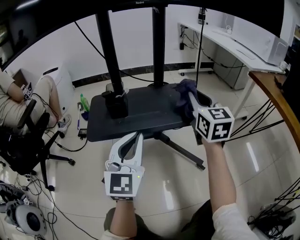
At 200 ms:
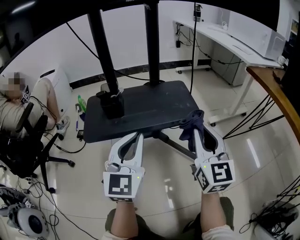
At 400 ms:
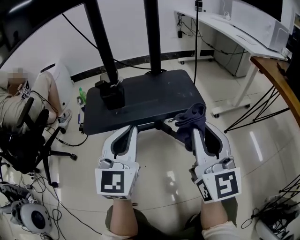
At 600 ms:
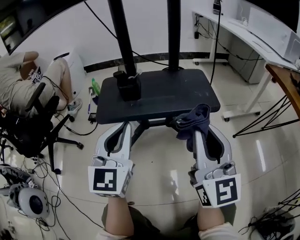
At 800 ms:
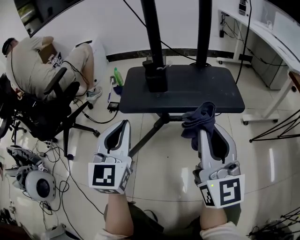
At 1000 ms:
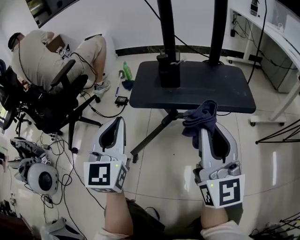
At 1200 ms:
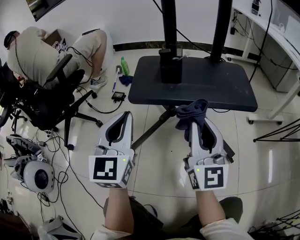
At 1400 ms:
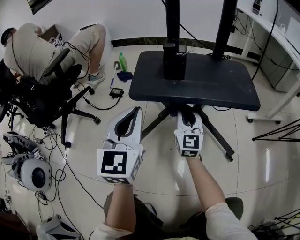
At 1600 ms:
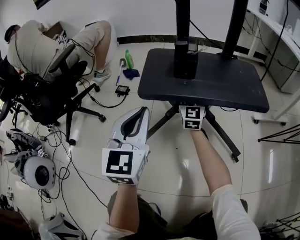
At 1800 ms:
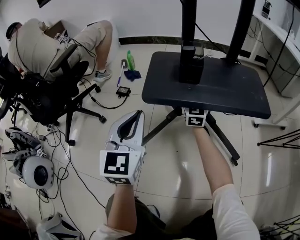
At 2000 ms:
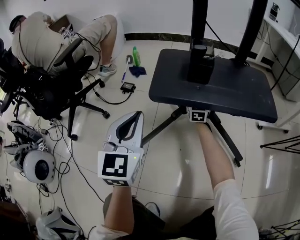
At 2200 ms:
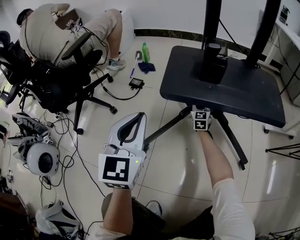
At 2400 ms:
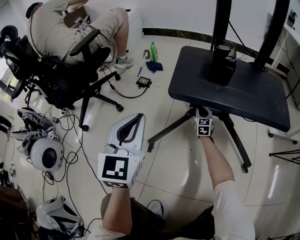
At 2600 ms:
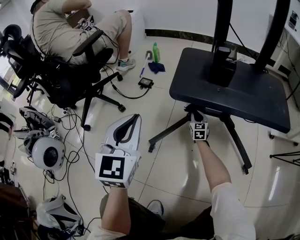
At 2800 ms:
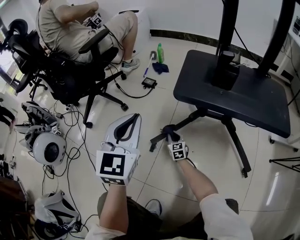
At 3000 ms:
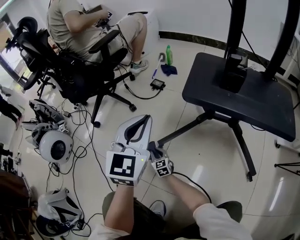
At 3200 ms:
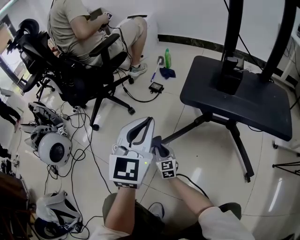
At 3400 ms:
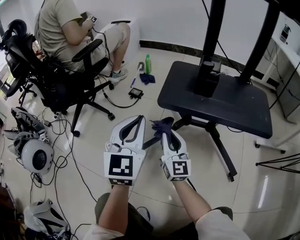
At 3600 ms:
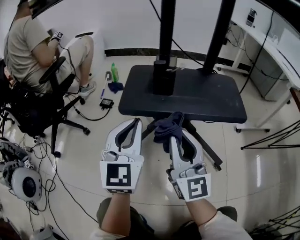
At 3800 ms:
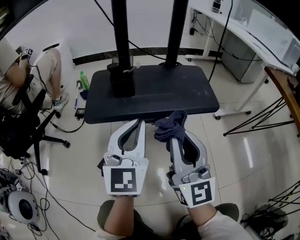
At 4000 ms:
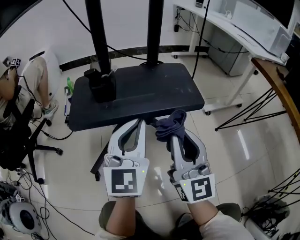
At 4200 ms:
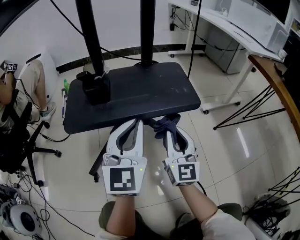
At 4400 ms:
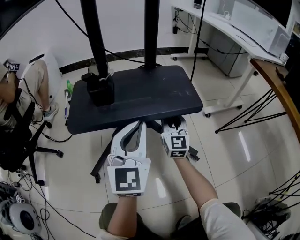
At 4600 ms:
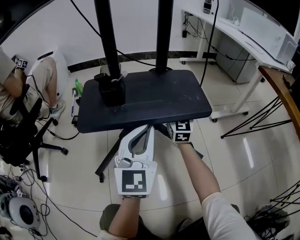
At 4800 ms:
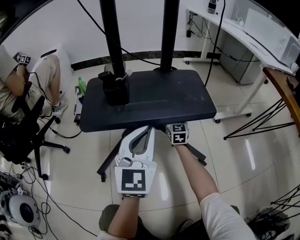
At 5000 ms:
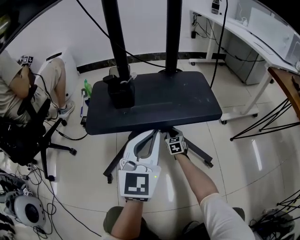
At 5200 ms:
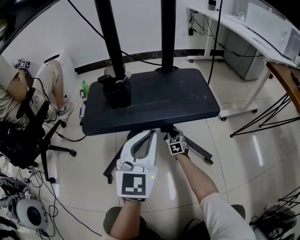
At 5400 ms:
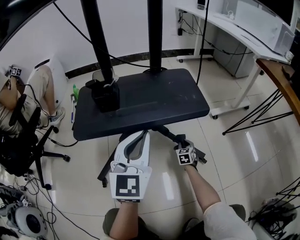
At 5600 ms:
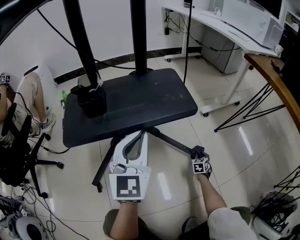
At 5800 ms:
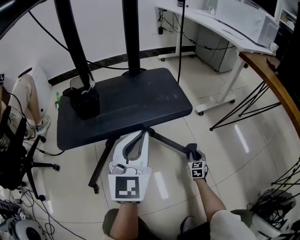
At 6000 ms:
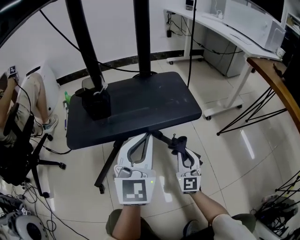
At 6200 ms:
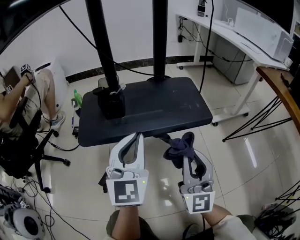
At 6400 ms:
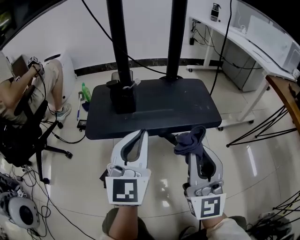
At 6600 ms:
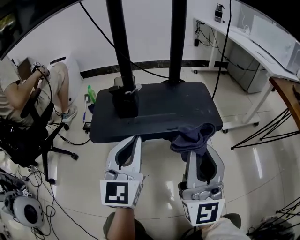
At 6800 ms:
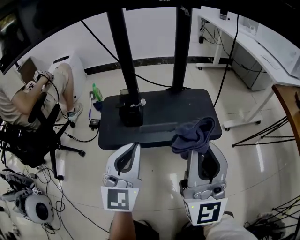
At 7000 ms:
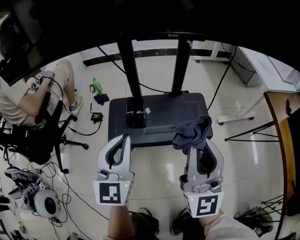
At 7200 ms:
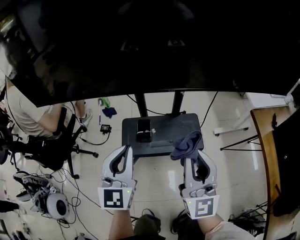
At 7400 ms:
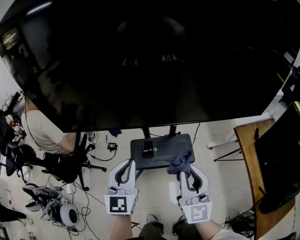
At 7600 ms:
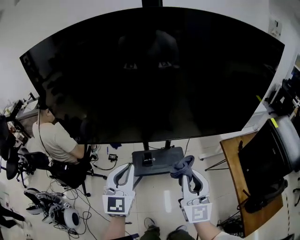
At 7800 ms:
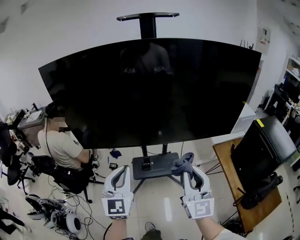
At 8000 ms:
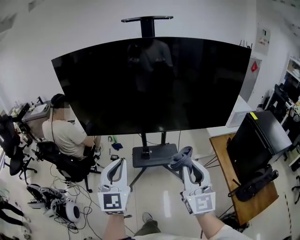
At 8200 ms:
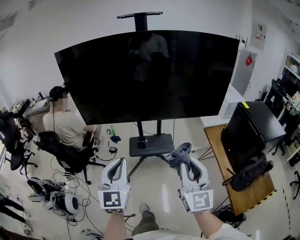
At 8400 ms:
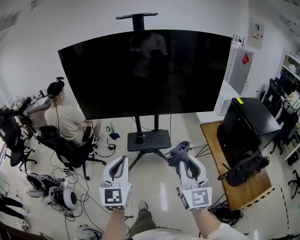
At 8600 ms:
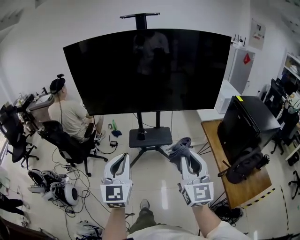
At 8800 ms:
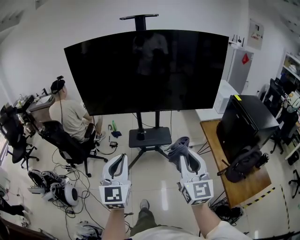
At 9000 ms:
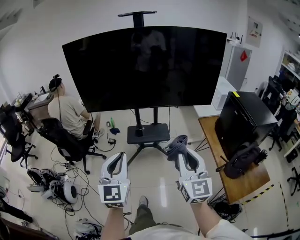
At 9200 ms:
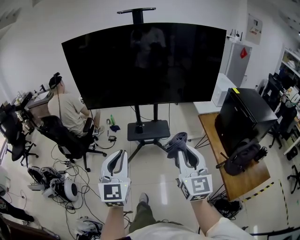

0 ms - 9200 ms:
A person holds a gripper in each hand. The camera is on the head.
0 ms - 1600 ms: The left gripper moves to the left, roughly 15 cm, while the right gripper heads to the left, downward and forward, covering roughly 35 cm.
1600 ms - 3000 ms: The right gripper goes roughly 50 cm downward and to the left, and rotates about 50 degrees. The left gripper goes approximately 10 cm to the left.
3000 ms - 4600 ms: The left gripper moves roughly 25 cm, and swivels some 30 degrees. The right gripper changes place by roughly 70 cm, and turns by some 50 degrees.
4600 ms - 6200 ms: The right gripper travels backward by approximately 25 cm, moves some 50 cm downward and comes back, and rotates roughly 20 degrees.
6200 ms - 7600 ms: The grippers both shift upward by roughly 80 cm. The right gripper turns by approximately 20 degrees.
7600 ms - 9200 ms: The right gripper is displaced backward, upward and to the right by about 35 cm. Meanwhile the left gripper is displaced backward and upward by roughly 35 cm.

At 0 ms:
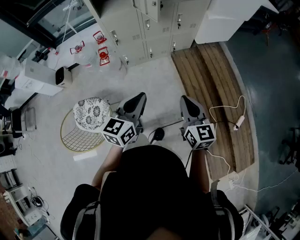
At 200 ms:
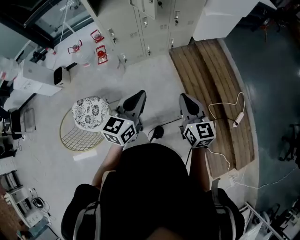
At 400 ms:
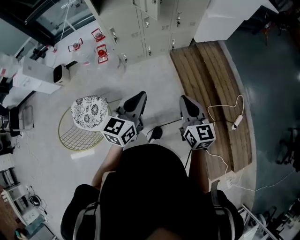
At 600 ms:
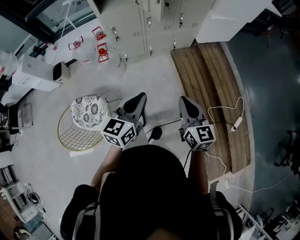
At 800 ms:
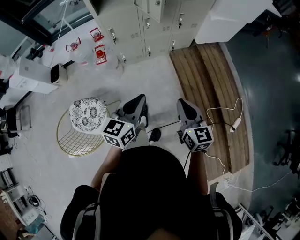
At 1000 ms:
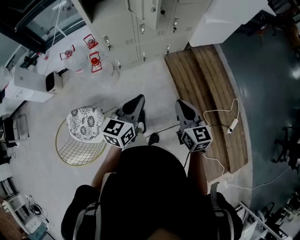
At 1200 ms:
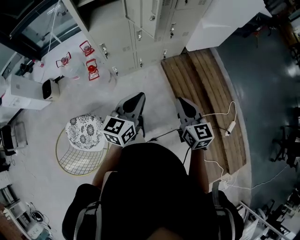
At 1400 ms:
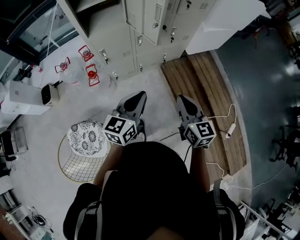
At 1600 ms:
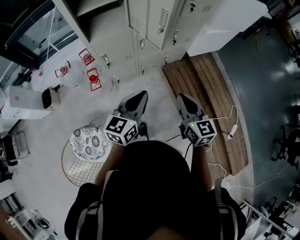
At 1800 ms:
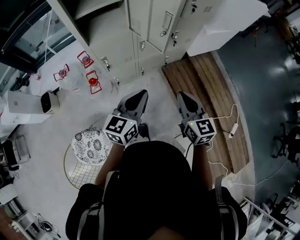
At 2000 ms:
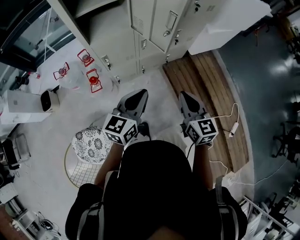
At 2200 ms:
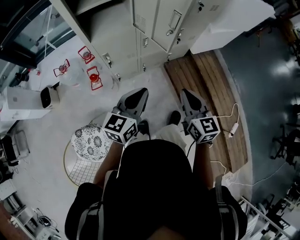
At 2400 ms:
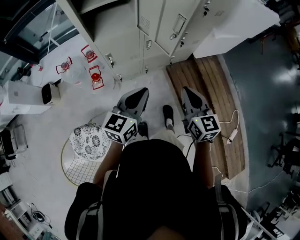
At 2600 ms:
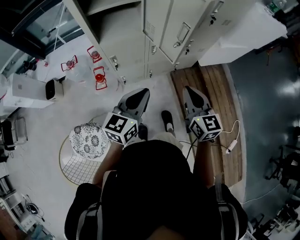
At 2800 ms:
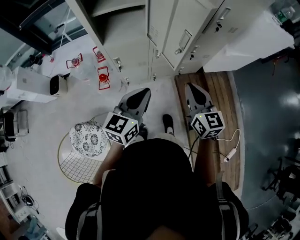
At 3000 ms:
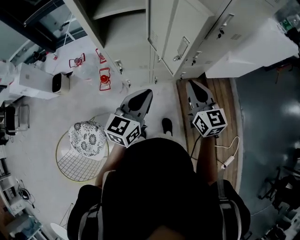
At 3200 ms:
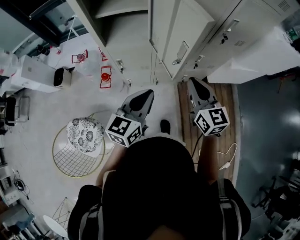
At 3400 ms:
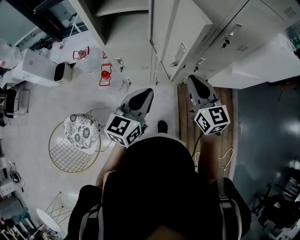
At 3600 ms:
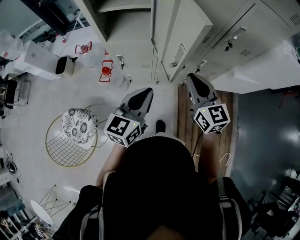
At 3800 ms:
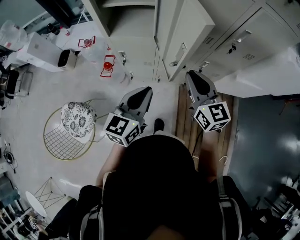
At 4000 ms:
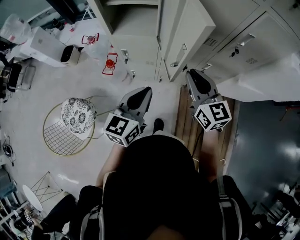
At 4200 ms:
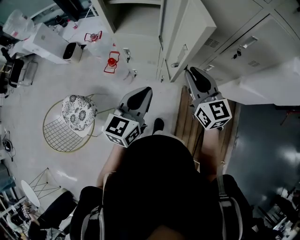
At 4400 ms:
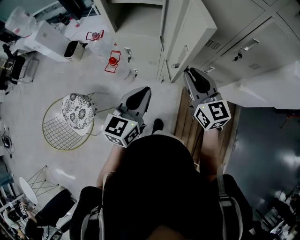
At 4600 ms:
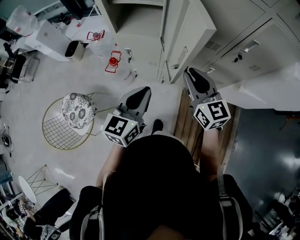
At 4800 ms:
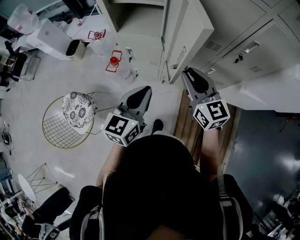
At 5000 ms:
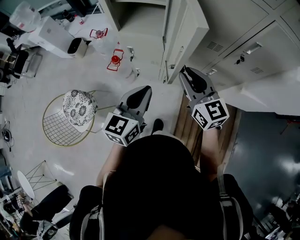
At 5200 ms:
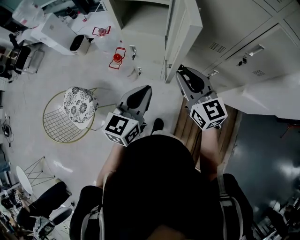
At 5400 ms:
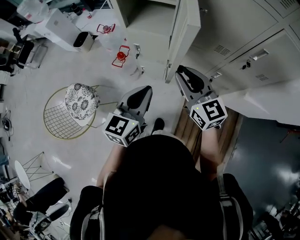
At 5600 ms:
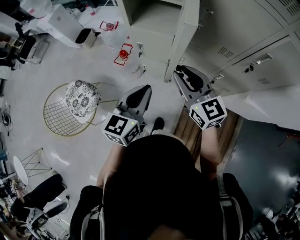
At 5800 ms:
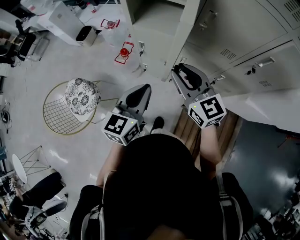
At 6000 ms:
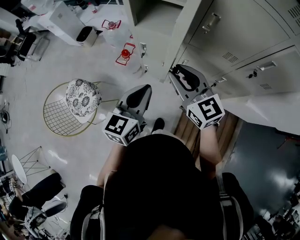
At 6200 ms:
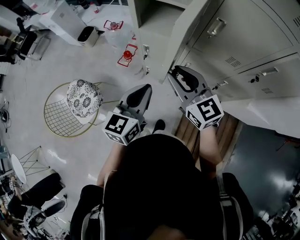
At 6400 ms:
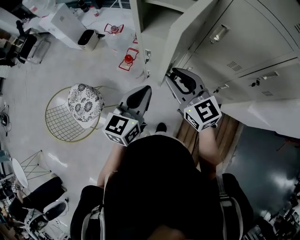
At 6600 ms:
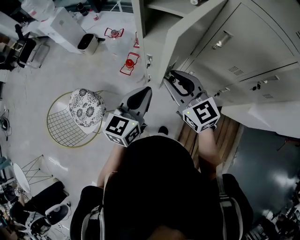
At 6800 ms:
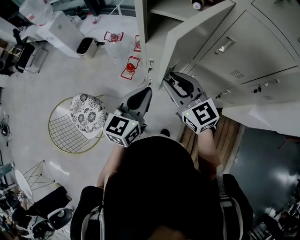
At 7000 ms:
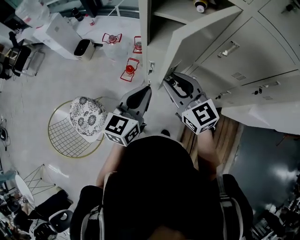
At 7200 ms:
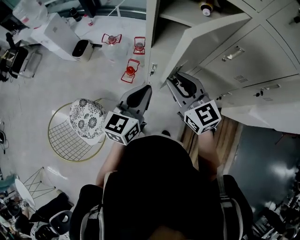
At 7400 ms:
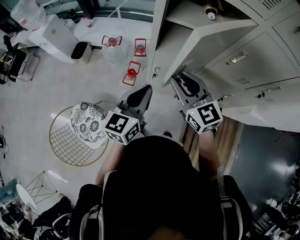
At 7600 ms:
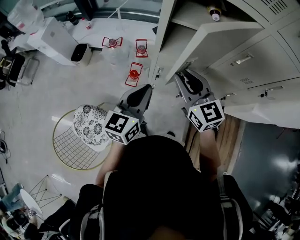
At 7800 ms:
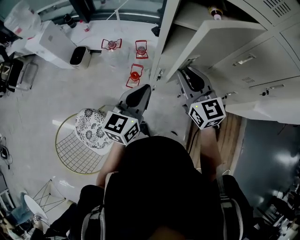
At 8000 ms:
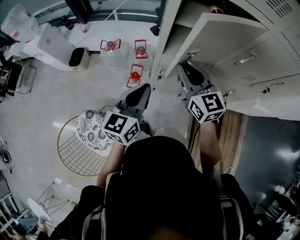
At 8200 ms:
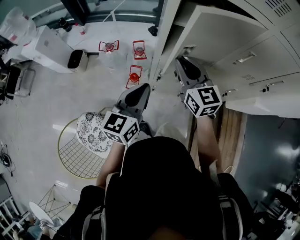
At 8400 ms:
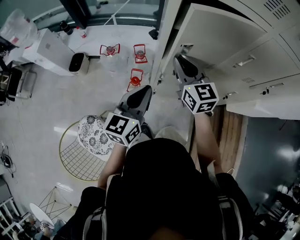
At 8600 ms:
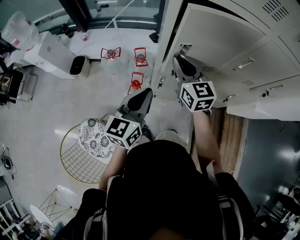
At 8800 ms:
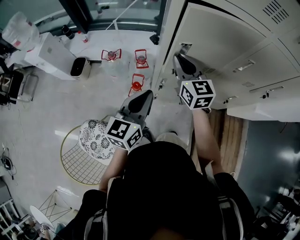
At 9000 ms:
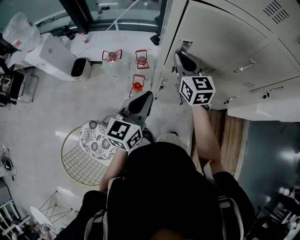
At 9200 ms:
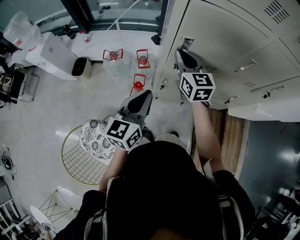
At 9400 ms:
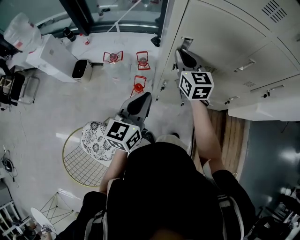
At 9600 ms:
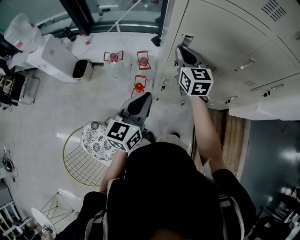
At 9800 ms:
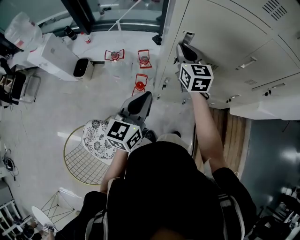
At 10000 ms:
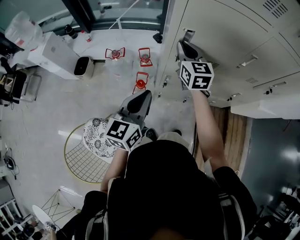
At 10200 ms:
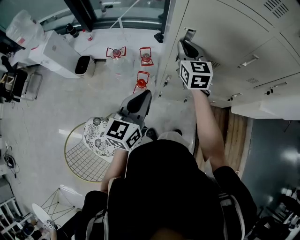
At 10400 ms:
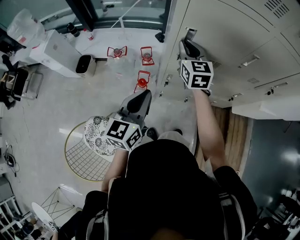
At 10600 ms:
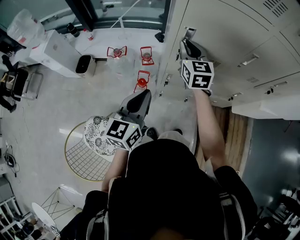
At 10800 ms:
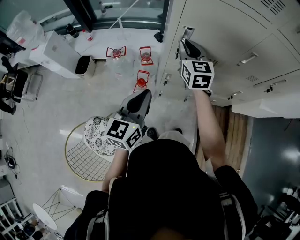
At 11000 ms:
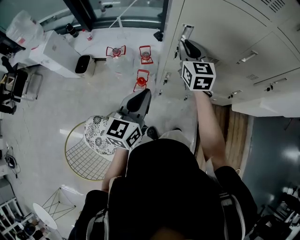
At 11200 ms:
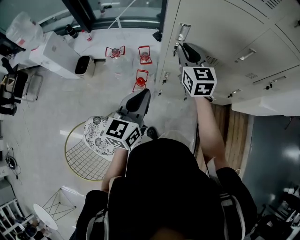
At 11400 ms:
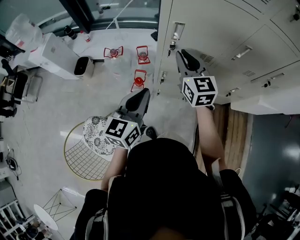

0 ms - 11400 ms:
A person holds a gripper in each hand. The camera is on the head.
0 ms - 1400 ms: Both grippers move forward, some 20 cm.
1400 ms - 2800 ms: The two grippers go roughly 15 cm forward.
2800 ms - 4200 ms: The right gripper moves roughly 10 cm, and rotates about 30 degrees, while the left gripper moves approximately 5 cm, and turns by roughly 20 degrees.
4200 ms - 5600 ms: The right gripper heads to the left, covering some 5 cm.
5600 ms - 7200 ms: The grippers both shift to the left and forward by some 20 cm.
7200 ms - 8600 ms: The right gripper shifts approximately 15 cm forward, and turns by roughly 20 degrees; the left gripper heads to the left and forward, covering some 10 cm.
8600 ms - 10000 ms: The right gripper shifts about 5 cm forward.
10000 ms - 11400 ms: The right gripper moves backward, about 10 cm.

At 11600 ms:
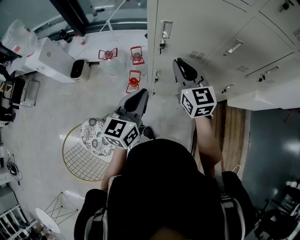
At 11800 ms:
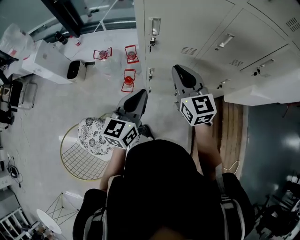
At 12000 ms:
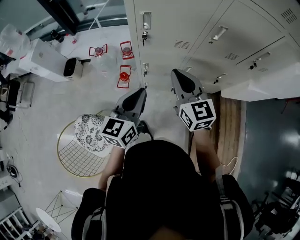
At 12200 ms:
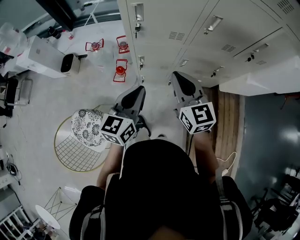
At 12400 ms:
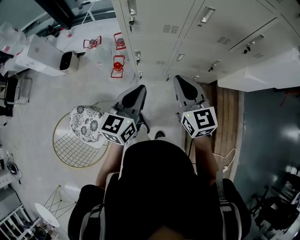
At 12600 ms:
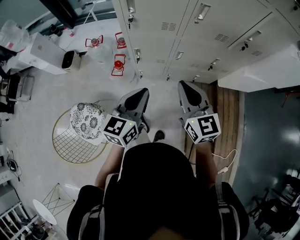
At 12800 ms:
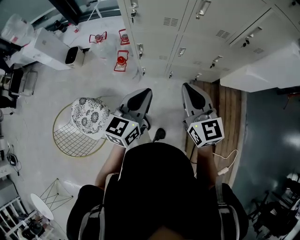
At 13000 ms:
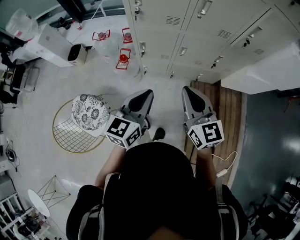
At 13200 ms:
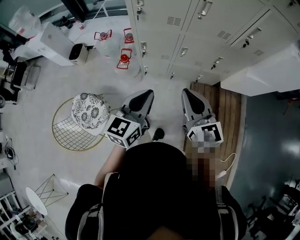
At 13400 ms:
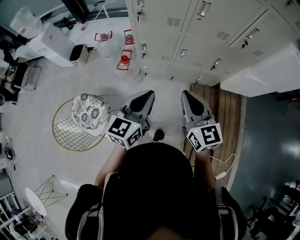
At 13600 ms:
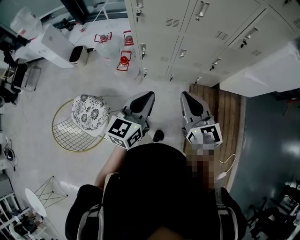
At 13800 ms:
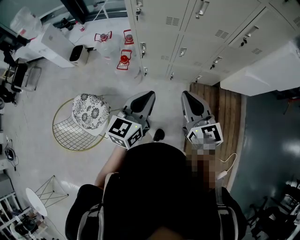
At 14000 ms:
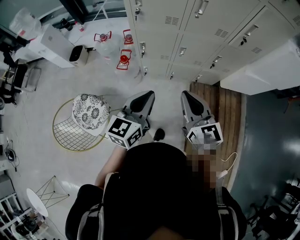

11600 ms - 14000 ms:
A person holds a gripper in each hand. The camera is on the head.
11600 ms - 12800 ms: The left gripper is displaced to the right and backward by some 20 cm, while the right gripper goes about 30 cm backward and to the right.
12800 ms - 14000 ms: Both grippers travel together backward, roughly 5 cm.
